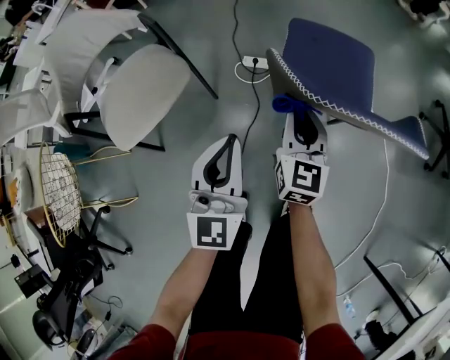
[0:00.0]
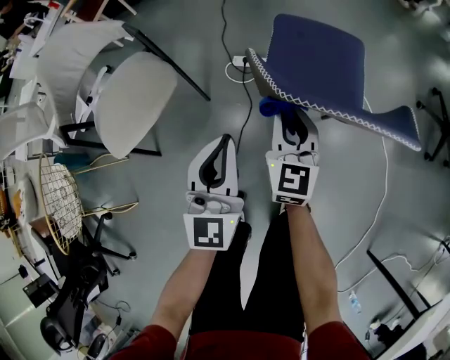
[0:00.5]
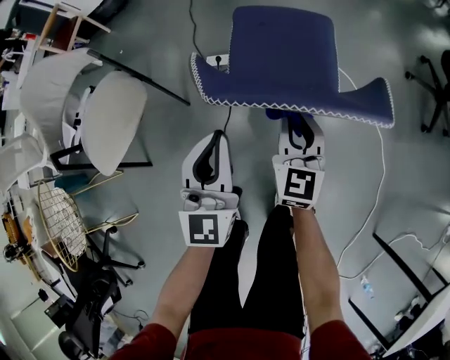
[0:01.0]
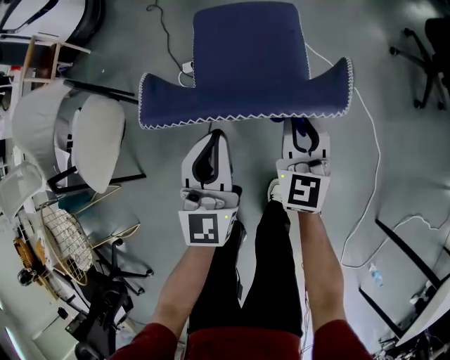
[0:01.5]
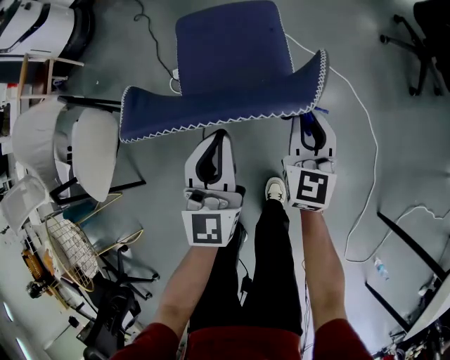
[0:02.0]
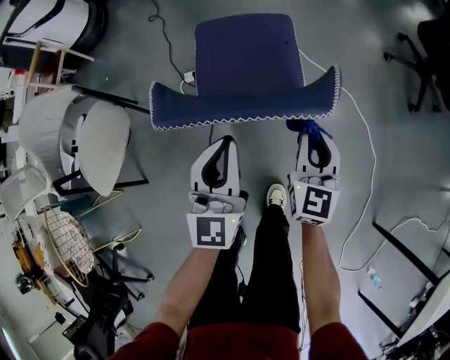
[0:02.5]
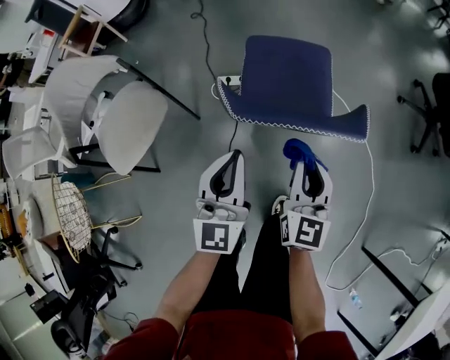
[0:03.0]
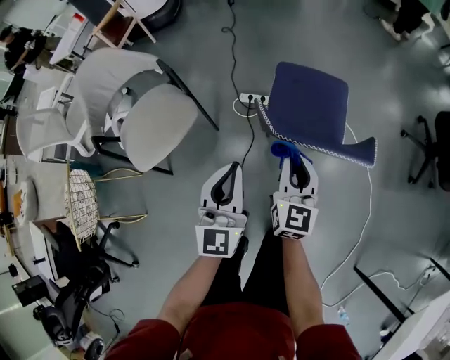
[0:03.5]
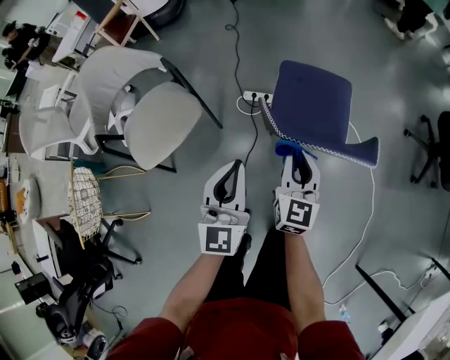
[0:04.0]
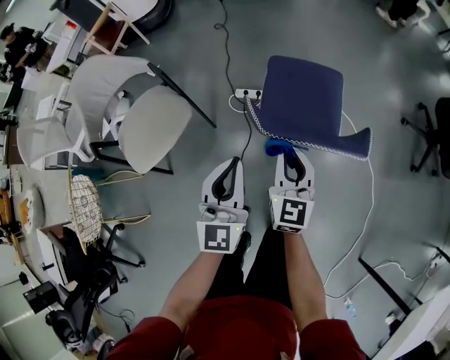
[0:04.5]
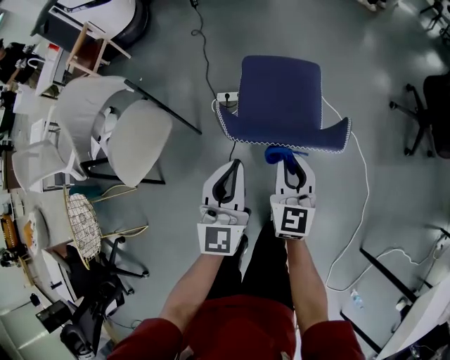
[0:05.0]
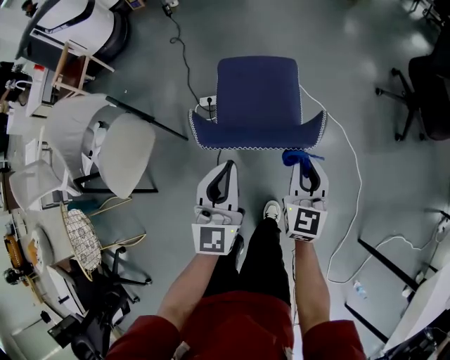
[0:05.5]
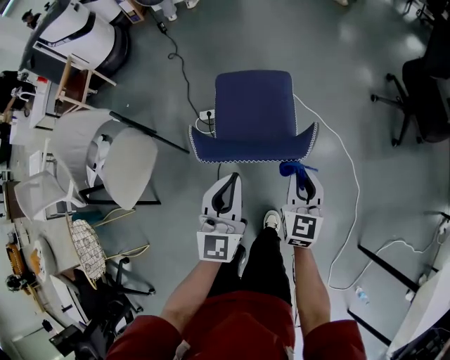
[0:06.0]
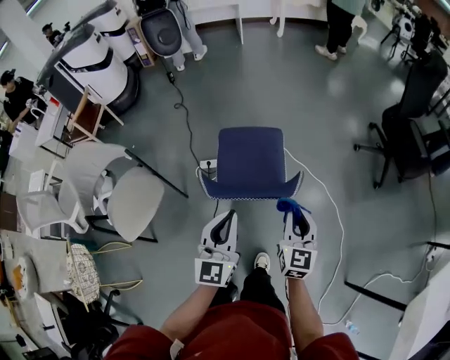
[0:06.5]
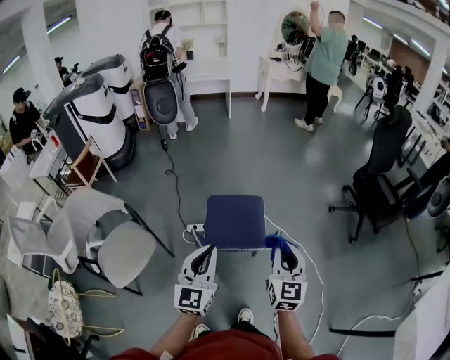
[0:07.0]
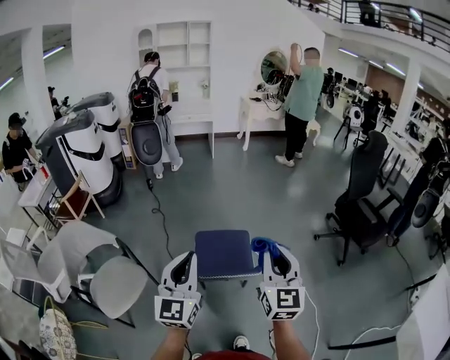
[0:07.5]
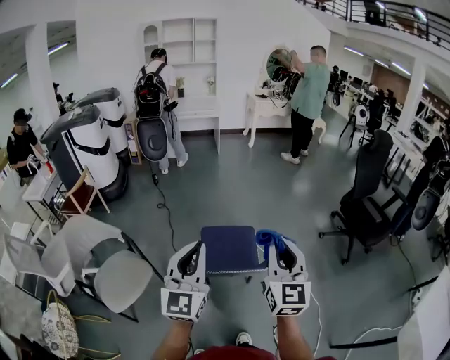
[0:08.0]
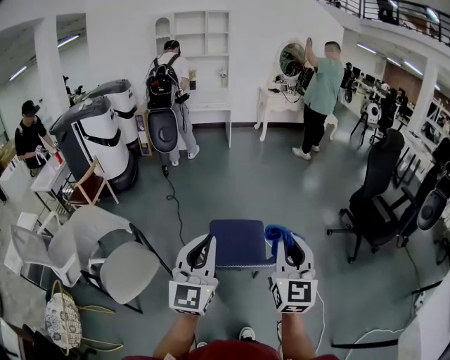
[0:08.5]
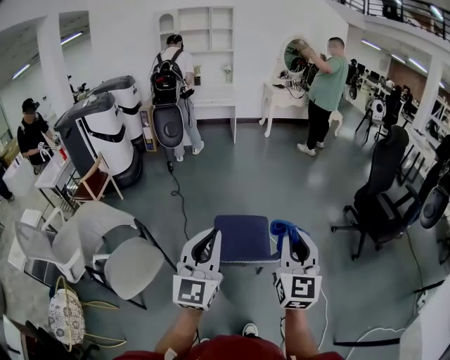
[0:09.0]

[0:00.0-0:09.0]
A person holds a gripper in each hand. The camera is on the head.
0:00.0 to 0:02.0: Both grippers move to the right, about 25 cm.
0:02.0 to 0:04.5: The two grippers go some 25 cm to the left and upward.
0:04.5 to 0:07.0: The right gripper moves upward and to the right, about 30 cm, while the left gripper travels upward and to the right by approximately 20 cm.
0:07.0 to 0:09.0: Both grippers travel together upward, about 15 cm.

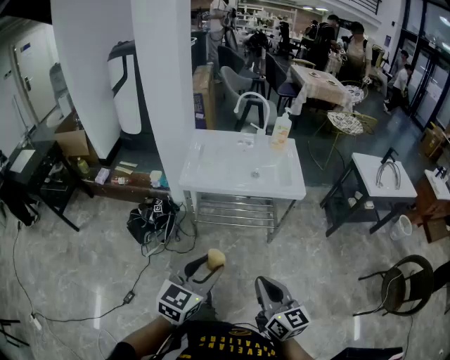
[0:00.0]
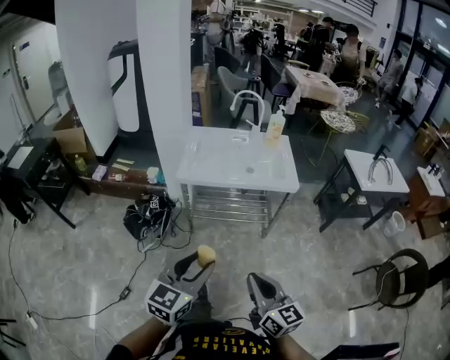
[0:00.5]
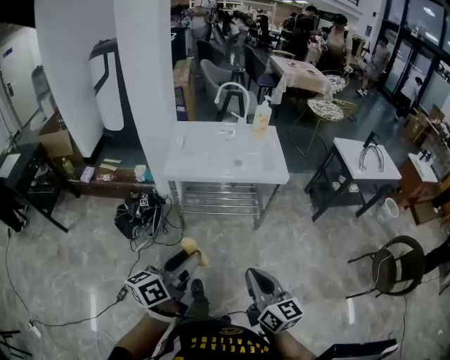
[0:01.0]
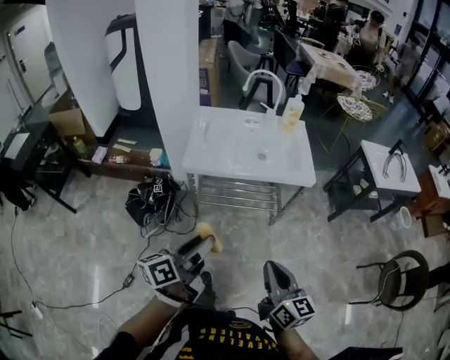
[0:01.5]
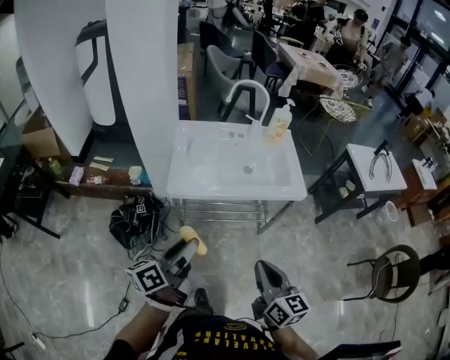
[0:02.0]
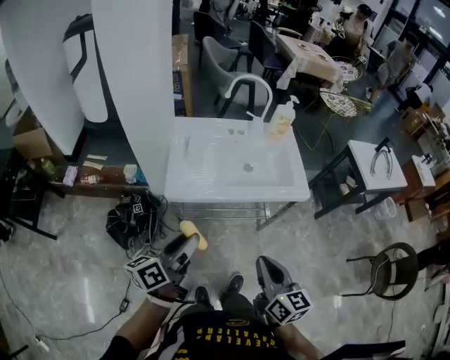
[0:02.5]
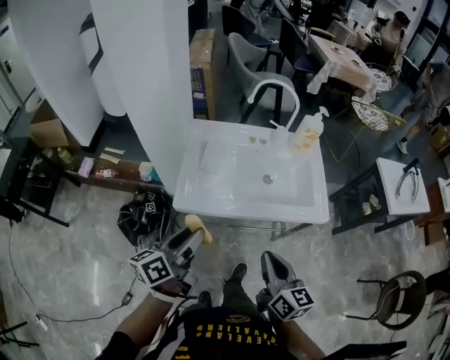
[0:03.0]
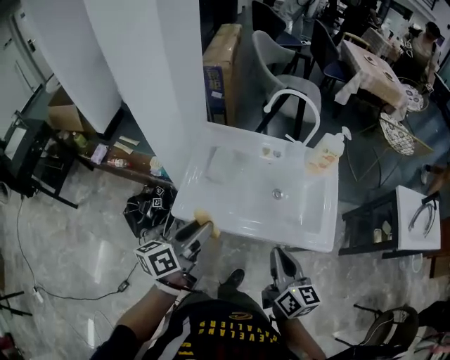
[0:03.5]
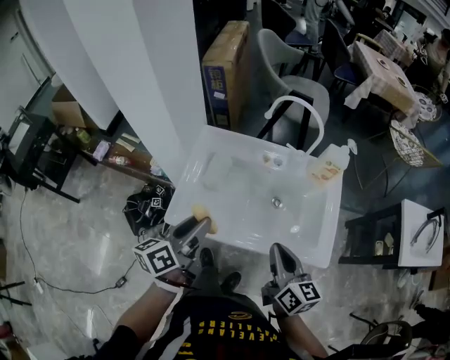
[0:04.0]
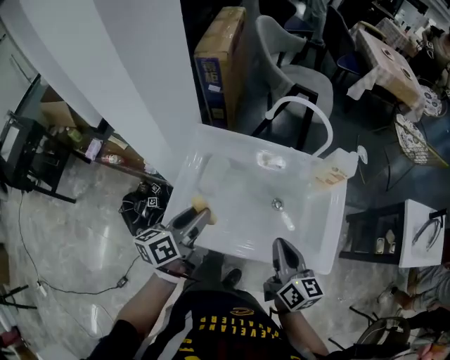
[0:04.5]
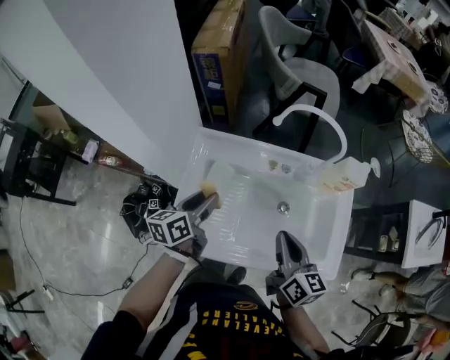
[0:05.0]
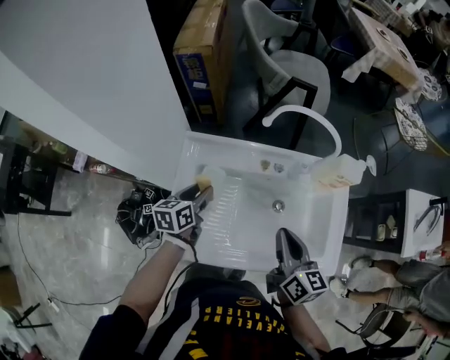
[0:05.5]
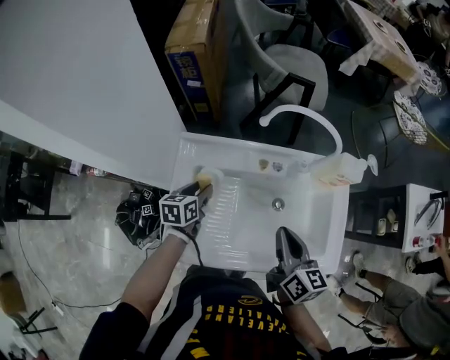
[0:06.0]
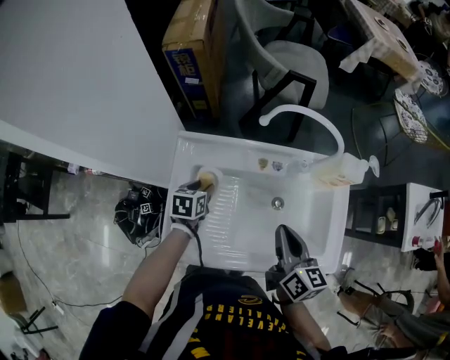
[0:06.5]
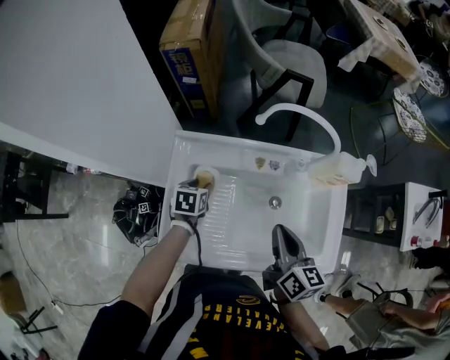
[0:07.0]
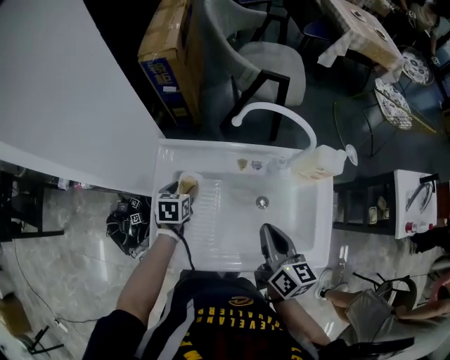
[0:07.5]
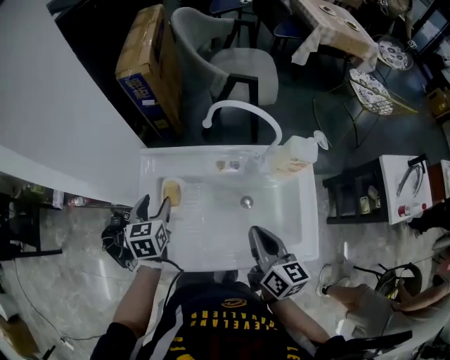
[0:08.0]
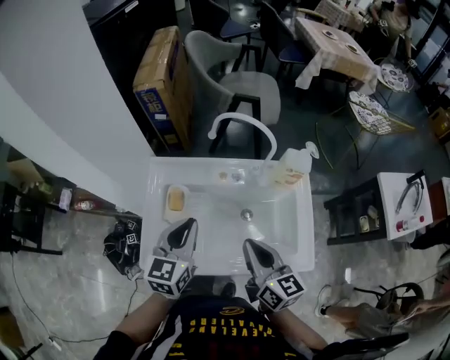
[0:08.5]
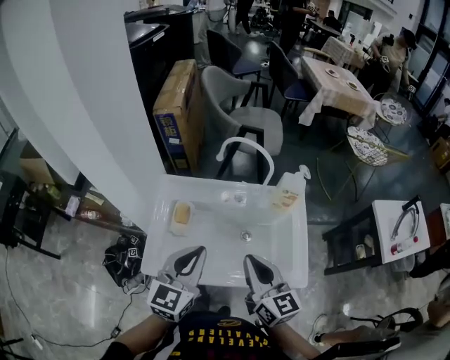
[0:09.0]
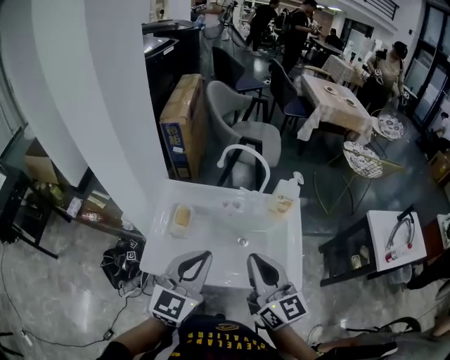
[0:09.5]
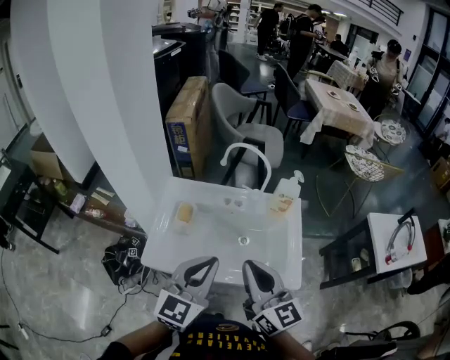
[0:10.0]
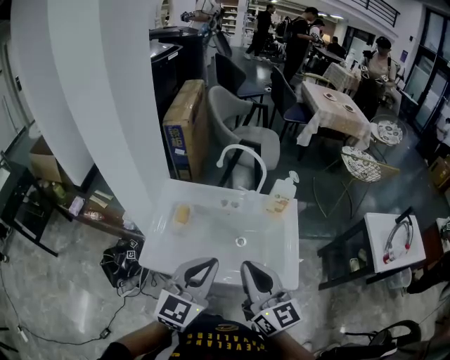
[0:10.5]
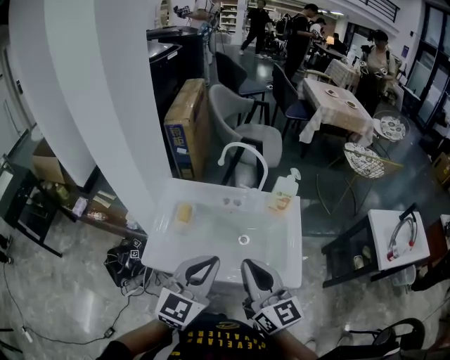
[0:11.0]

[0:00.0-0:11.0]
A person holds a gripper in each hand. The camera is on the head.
0:00.0 to 0:02.0: The grippers both shift forward and to the left by roughly 20 cm. The left gripper rotates around the line of its fingers by roughly 50 degrees, counterclockwise from behind.
0:02.0 to 0:03.5: Both grippers travel together forward, roughly 25 cm.
0:03.5 to 0:05.5: The left gripper is displaced forward and downward by approximately 35 cm, and swivels about 30 degrees. The right gripper goes roughly 25 cm forward.
0:05.5 to 0:07.5: The left gripper is displaced downward by some 5 cm, and turns by approximately 30 degrees.
0:07.5 to 0:09.0: The left gripper moves upward, backward and to the right, about 40 cm, angles its fingers upward, by some 40 degrees, and closes up; the right gripper heads backward and upward, covering roughly 15 cm, and swivels roughly 30 degrees.
0:09.0 to 0:11.0: The right gripper is displaced backward and upward by some 10 cm. Meanwhile the left gripper is displaced backward and to the right by about 10 cm.

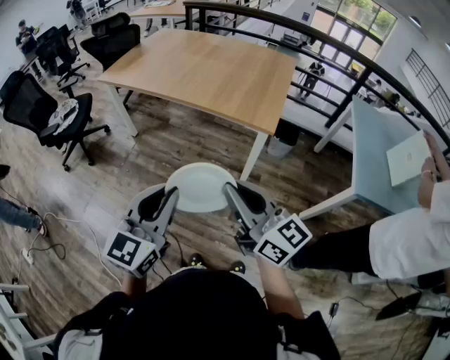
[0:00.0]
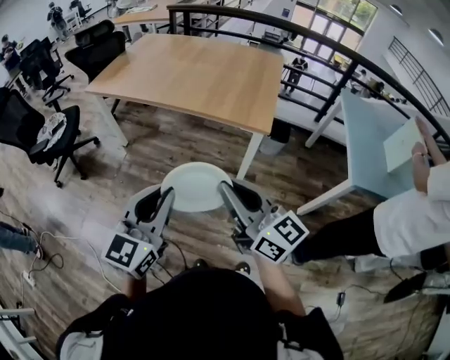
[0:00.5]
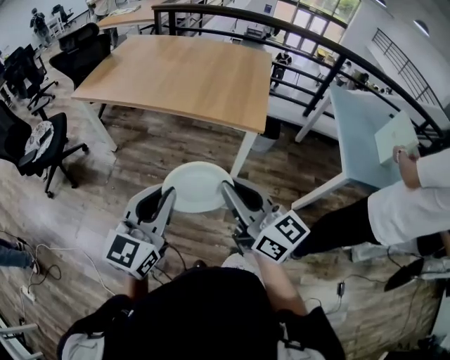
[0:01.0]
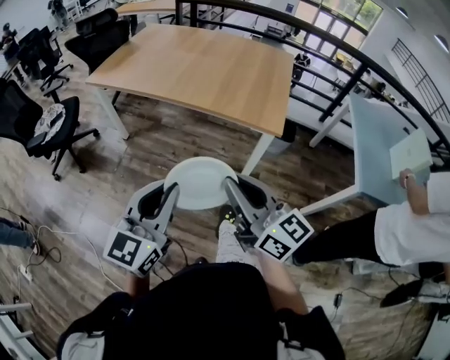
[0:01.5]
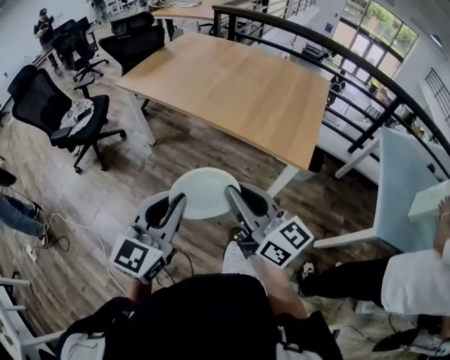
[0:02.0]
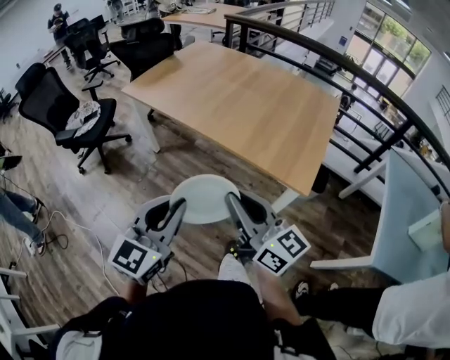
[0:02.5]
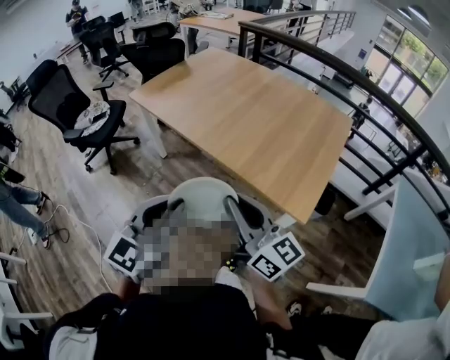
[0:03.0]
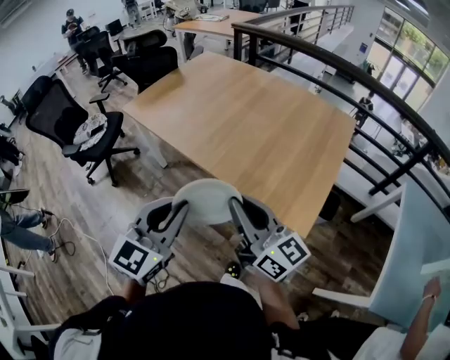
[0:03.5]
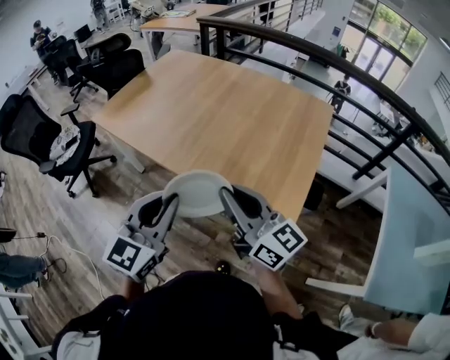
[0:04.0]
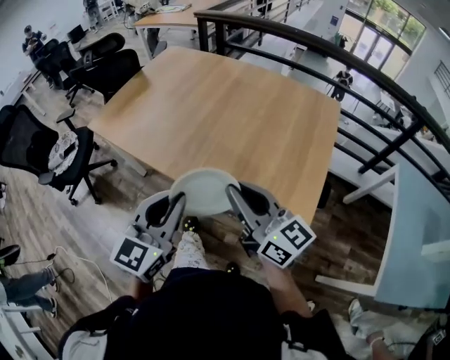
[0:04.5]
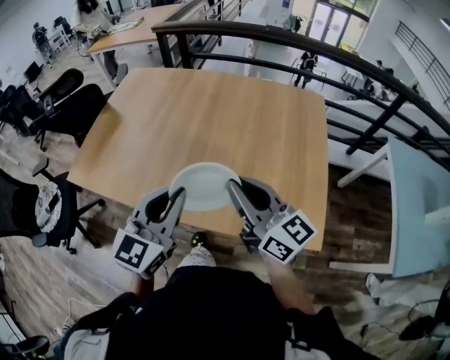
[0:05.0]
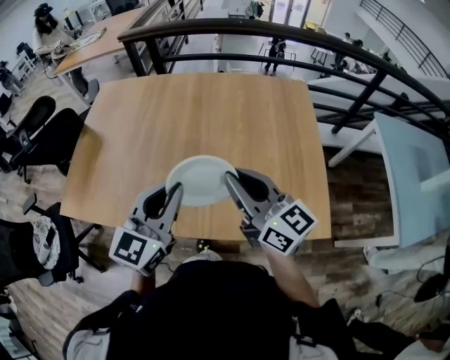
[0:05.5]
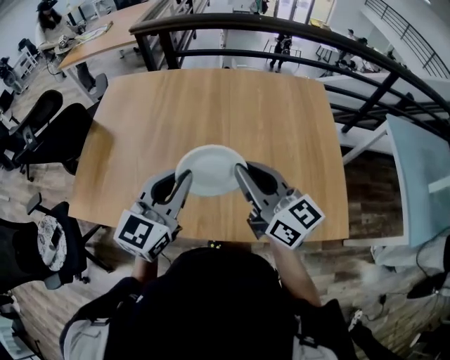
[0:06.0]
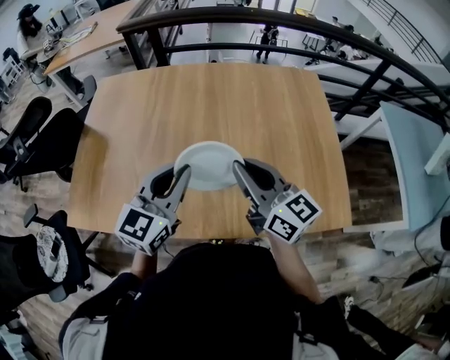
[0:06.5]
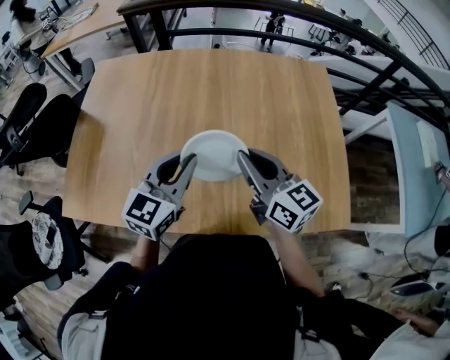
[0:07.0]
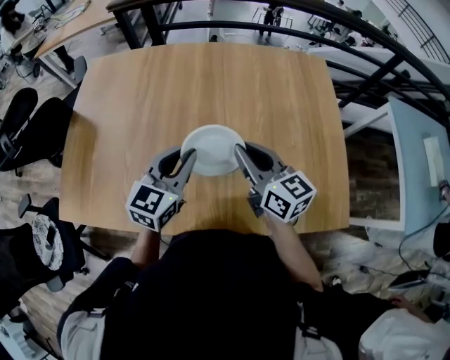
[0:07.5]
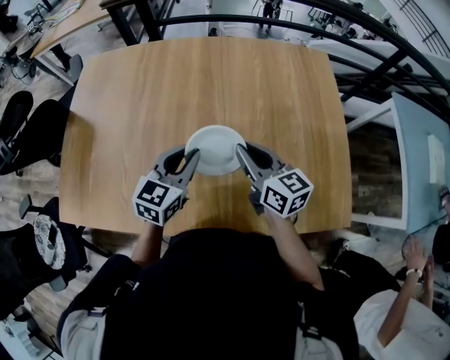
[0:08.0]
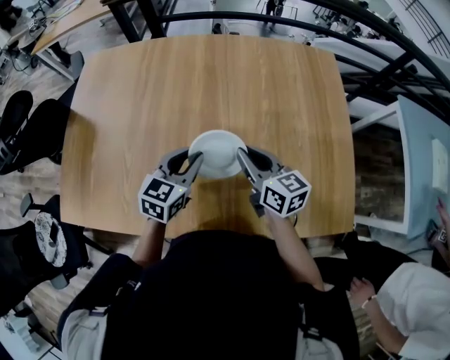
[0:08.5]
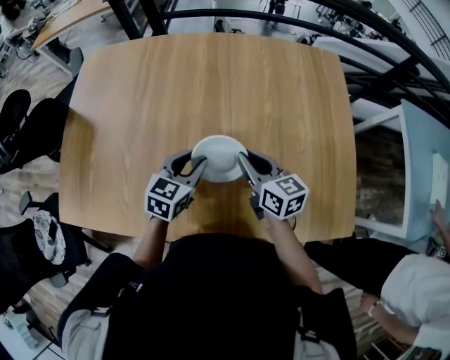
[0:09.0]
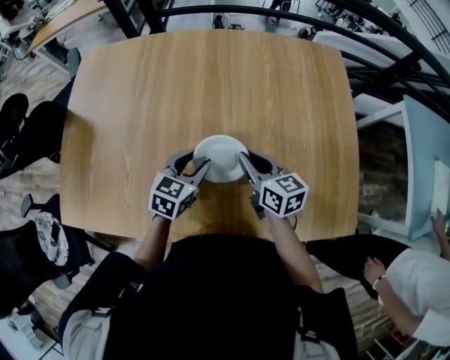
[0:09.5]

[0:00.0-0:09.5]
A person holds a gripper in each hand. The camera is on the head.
0:00.0 to 0:02.0: Both grippers move forward and to the left, about 15 cm.
0:02.0 to 0:04.0: The two grippers go about 30 cm forward and to the right.
0:04.0 to 0:05.5: The grippers both shift forward by about 30 cm. The left gripper rotates about 20 degrees; the right gripper turns by some 30 degrees.
0:05.5 to 0:07.5: Both grippers travel together forward and downward, some 20 cm.
0:07.5 to 0:09.5: The two grippers go approximately 15 cm downward. The left gripper rotates about 20 degrees, and opens up.
